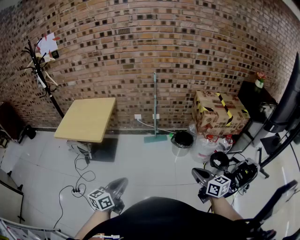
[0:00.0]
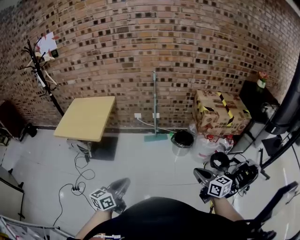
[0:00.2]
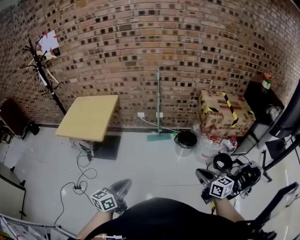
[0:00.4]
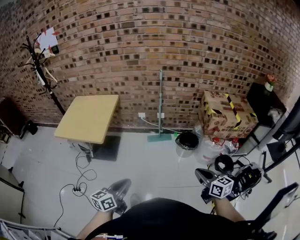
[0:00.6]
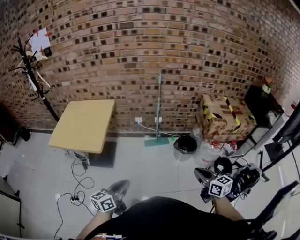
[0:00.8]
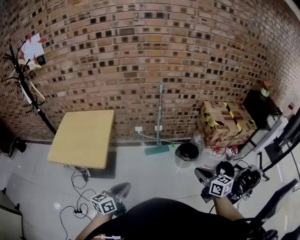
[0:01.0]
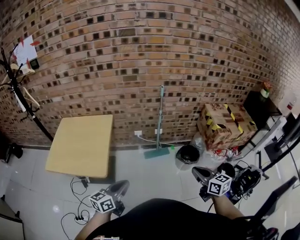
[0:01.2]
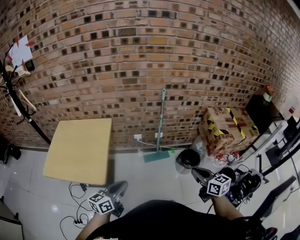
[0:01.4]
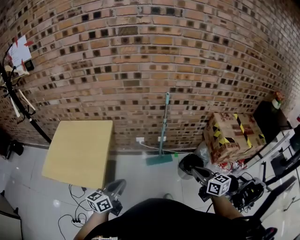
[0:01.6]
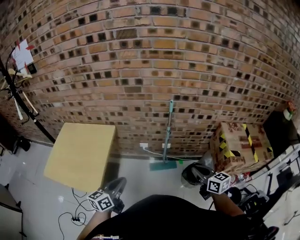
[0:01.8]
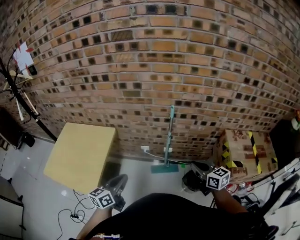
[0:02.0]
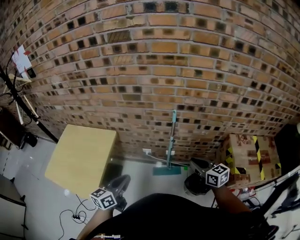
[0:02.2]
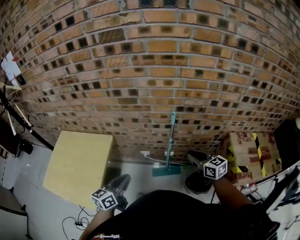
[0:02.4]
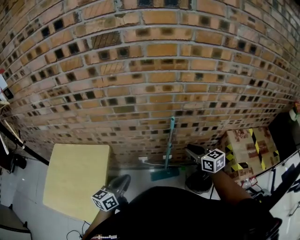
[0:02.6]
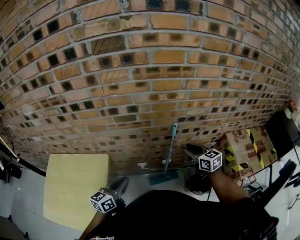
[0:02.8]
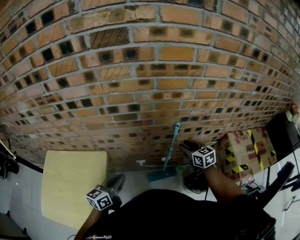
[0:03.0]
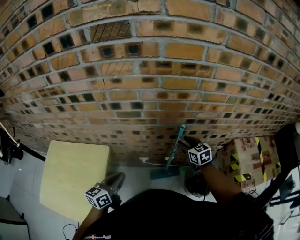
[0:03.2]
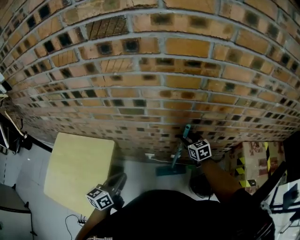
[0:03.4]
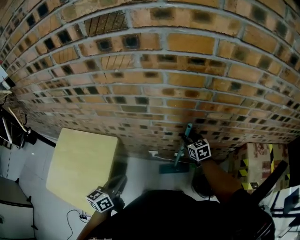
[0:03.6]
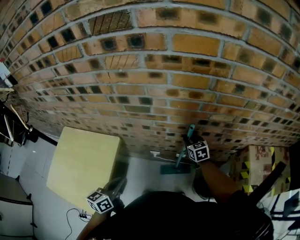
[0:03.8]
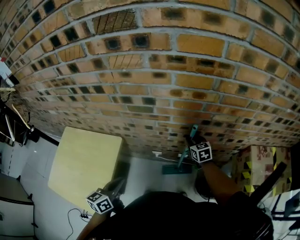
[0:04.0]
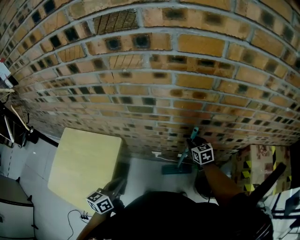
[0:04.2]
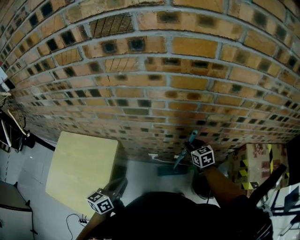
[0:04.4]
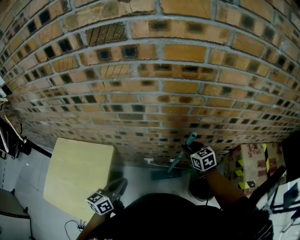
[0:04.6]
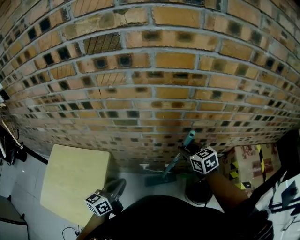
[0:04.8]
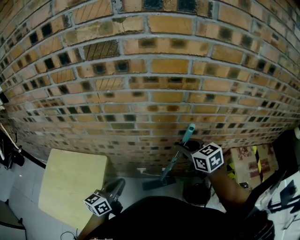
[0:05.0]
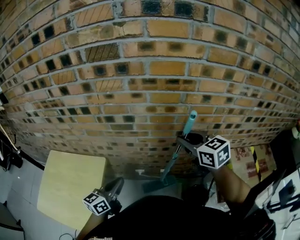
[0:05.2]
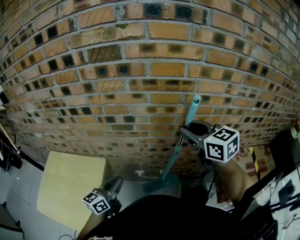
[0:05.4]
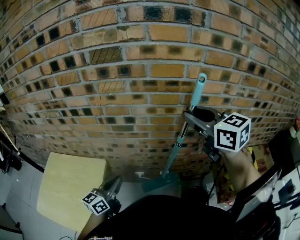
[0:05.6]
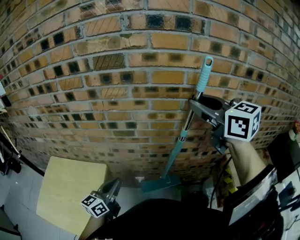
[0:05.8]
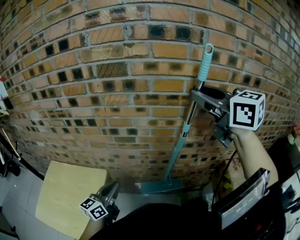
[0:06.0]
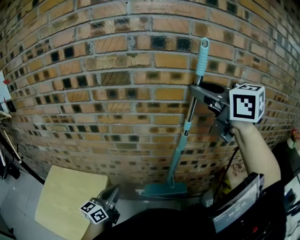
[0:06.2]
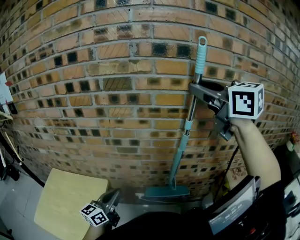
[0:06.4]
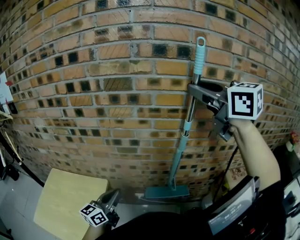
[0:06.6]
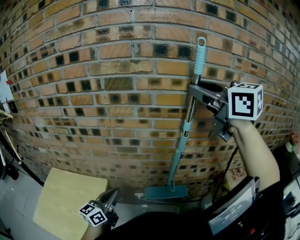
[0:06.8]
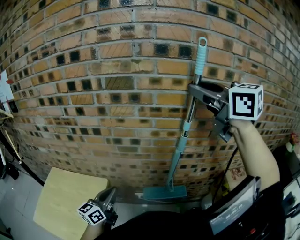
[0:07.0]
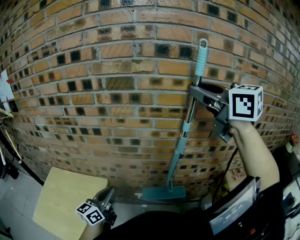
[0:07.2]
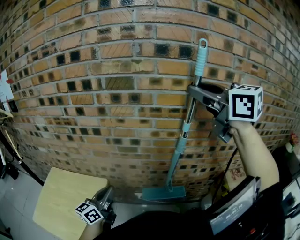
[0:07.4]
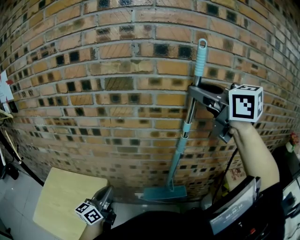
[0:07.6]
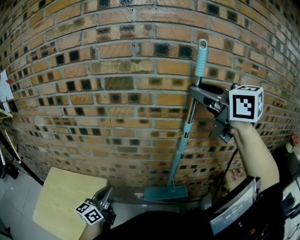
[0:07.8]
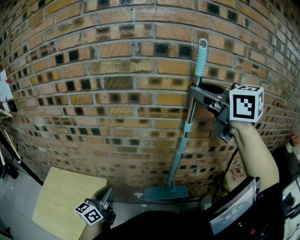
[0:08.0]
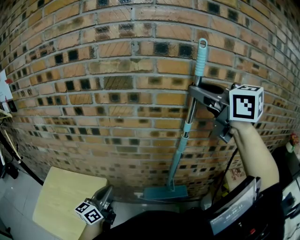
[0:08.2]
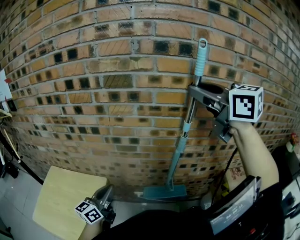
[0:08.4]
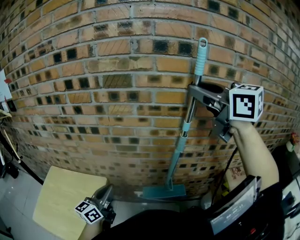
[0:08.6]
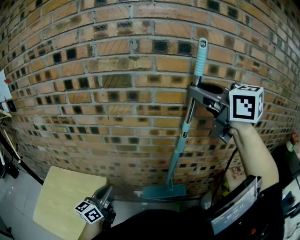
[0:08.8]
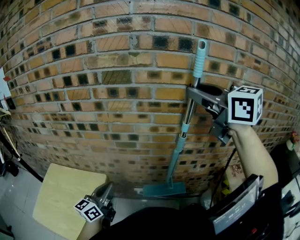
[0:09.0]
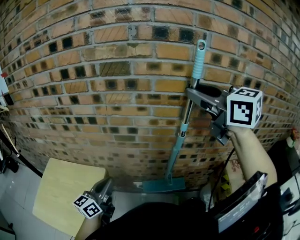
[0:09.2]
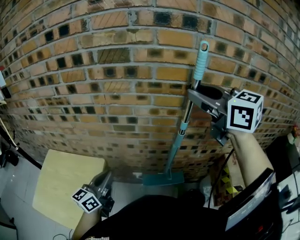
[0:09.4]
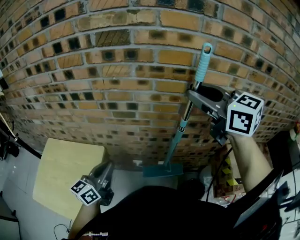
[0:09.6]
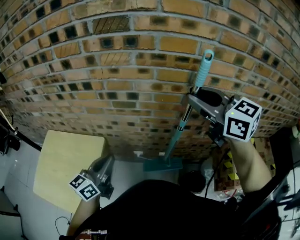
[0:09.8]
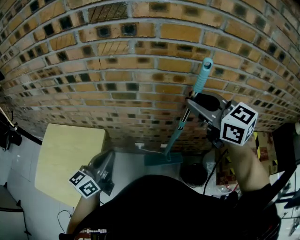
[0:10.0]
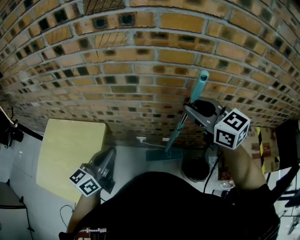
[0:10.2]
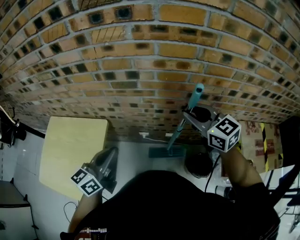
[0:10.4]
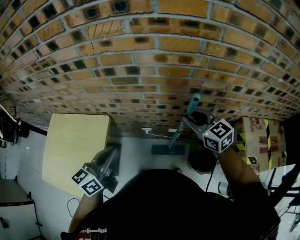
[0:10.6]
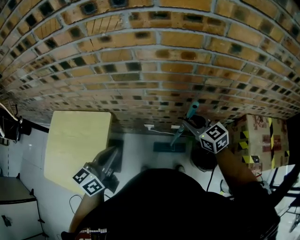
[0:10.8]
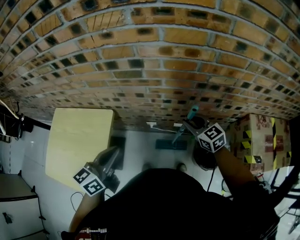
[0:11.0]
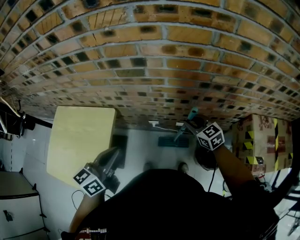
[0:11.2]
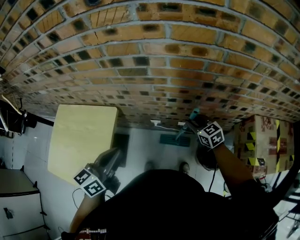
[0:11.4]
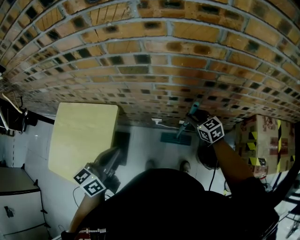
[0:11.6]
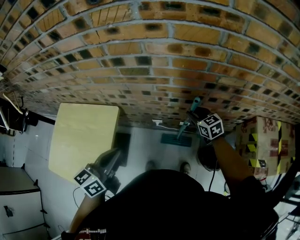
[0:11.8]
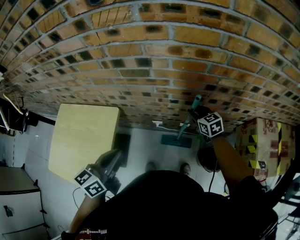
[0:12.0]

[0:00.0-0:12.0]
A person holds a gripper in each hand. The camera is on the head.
0.0 to 1.6 s: Both grippers are carried forward, approximately 40 cm.
1.6 to 3.0 s: Both grippers move forward, about 40 cm. The right gripper opens its fingers.
3.0 to 4.4 s: The right gripper travels downward and forward by about 10 cm.
4.4 to 6.0 s: The right gripper is displaced upward by about 50 cm, and turns by approximately 30 degrees. Meanwhile the left gripper goes approximately 10 cm upward.
6.0 to 7.6 s: The right gripper heads upward, covering roughly 5 cm.
7.6 to 9.0 s: The grippers make only small movements.
9.0 to 10.4 s: The right gripper moves downward, about 35 cm, while the left gripper changes place by some 5 cm.
10.4 to 12.0 s: The right gripper goes roughly 25 cm downward.

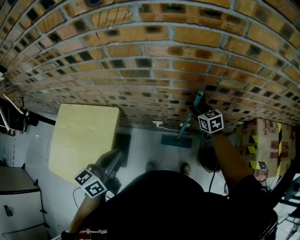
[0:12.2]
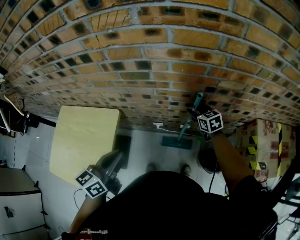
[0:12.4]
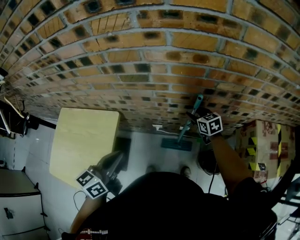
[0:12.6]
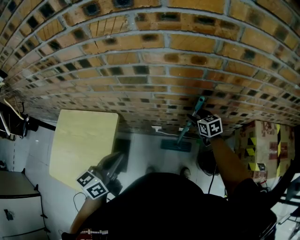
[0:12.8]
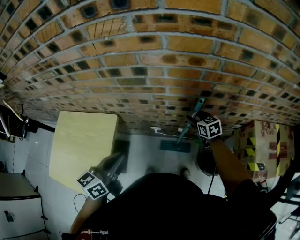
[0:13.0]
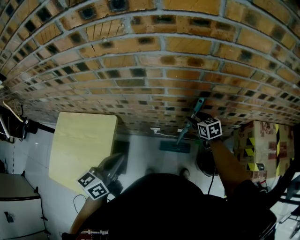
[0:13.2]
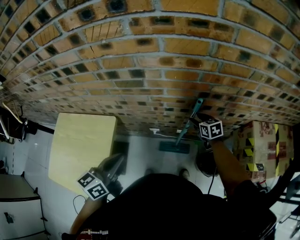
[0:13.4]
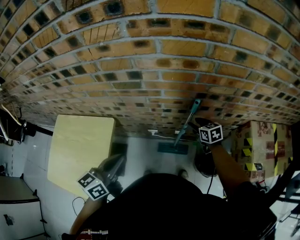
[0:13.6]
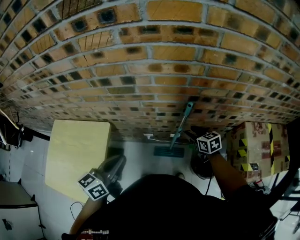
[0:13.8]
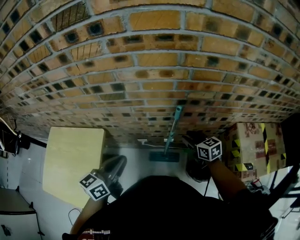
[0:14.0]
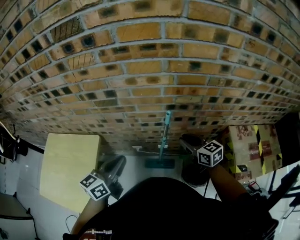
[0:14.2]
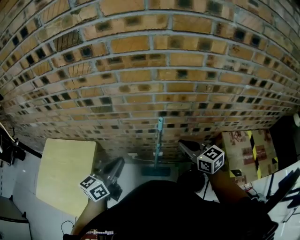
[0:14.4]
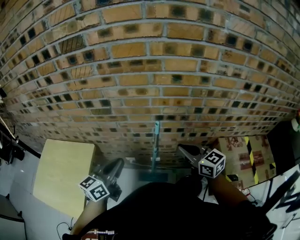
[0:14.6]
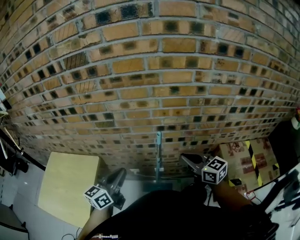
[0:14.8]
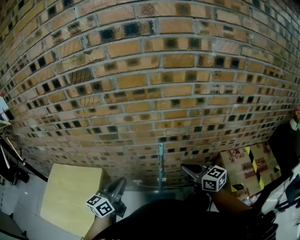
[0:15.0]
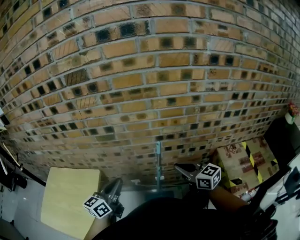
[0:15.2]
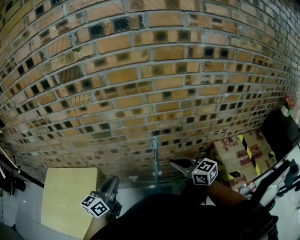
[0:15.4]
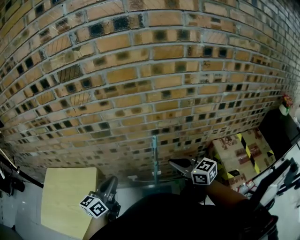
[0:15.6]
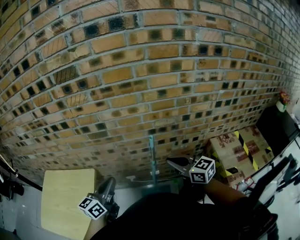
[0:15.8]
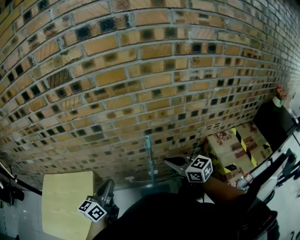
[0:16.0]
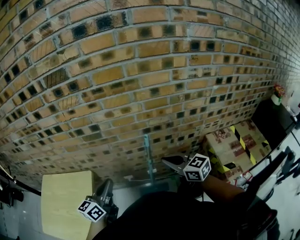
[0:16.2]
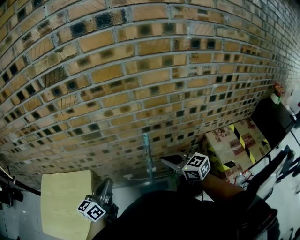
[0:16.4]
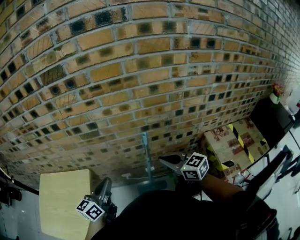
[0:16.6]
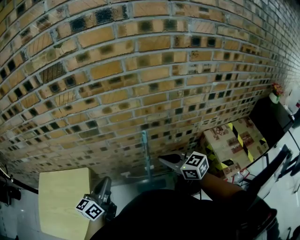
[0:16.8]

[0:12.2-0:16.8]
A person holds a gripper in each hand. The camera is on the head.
12.2 to 13.8 s: The right gripper travels backward by some 5 cm, and opens. The left gripper shifts by about 5 cm.
13.8 to 15.2 s: The right gripper shifts some 25 cm upward and backward, swivels some 30 degrees, and closes its fingers, while the left gripper is displaced to the right and upward by some 10 cm.
15.2 to 16.8 s: The grippers stay close to where they were, moving slightly.

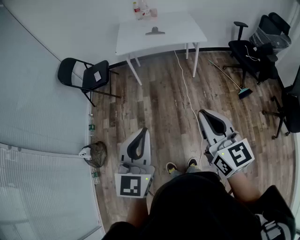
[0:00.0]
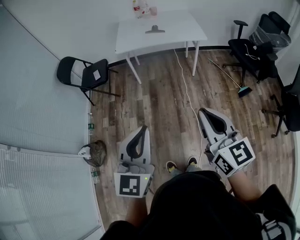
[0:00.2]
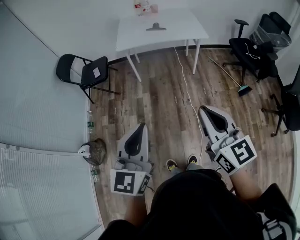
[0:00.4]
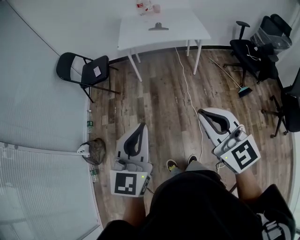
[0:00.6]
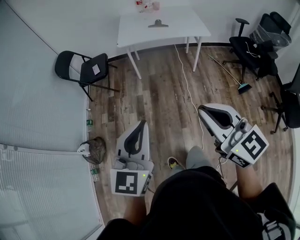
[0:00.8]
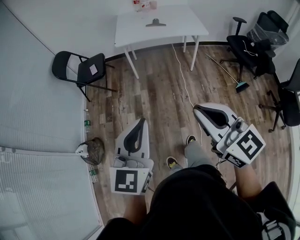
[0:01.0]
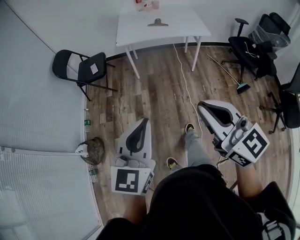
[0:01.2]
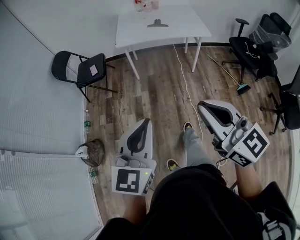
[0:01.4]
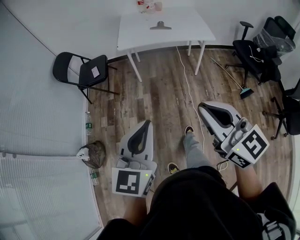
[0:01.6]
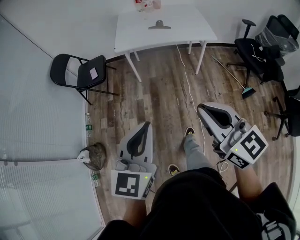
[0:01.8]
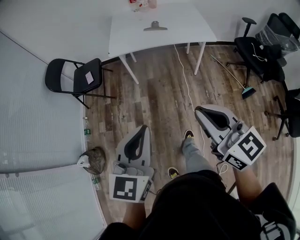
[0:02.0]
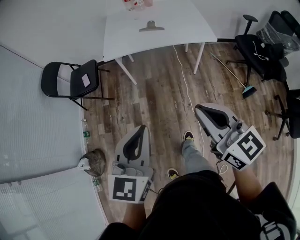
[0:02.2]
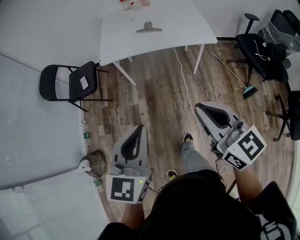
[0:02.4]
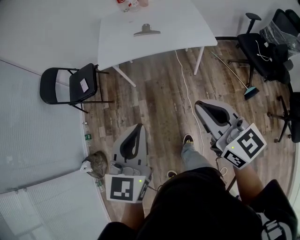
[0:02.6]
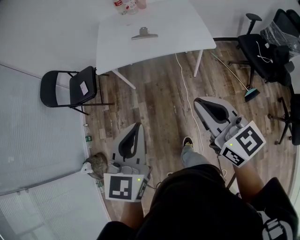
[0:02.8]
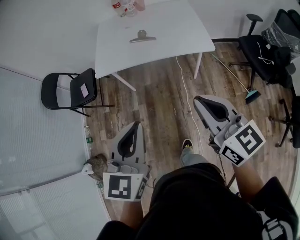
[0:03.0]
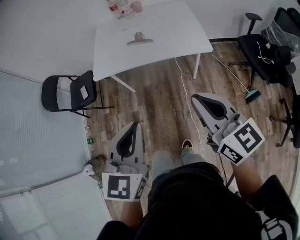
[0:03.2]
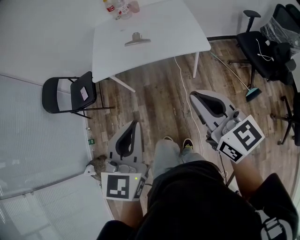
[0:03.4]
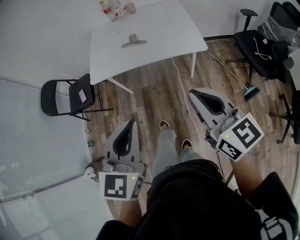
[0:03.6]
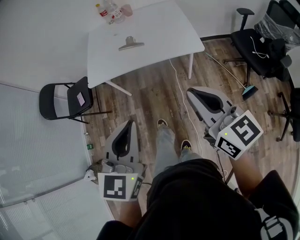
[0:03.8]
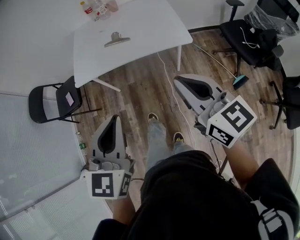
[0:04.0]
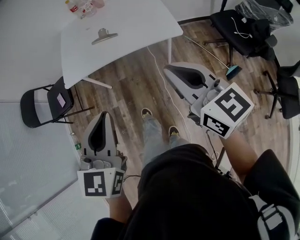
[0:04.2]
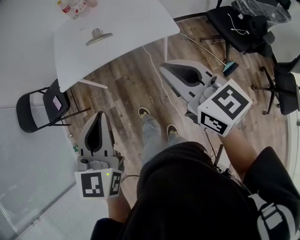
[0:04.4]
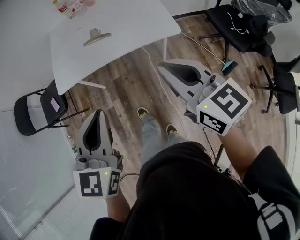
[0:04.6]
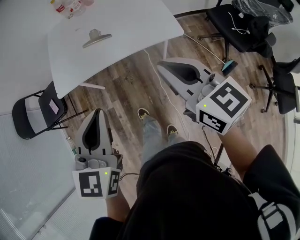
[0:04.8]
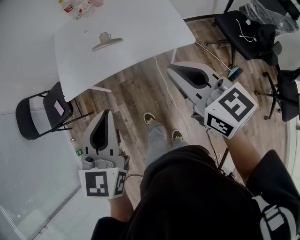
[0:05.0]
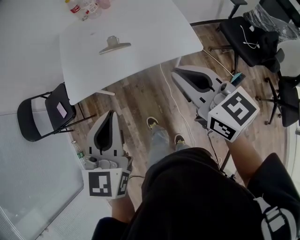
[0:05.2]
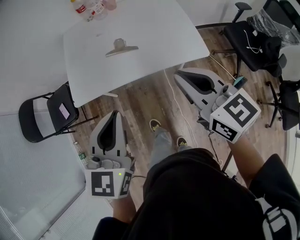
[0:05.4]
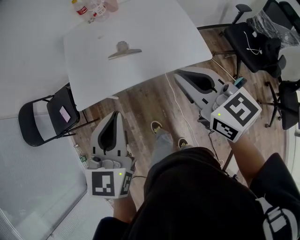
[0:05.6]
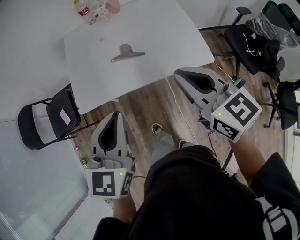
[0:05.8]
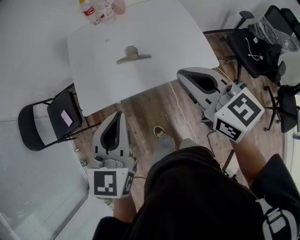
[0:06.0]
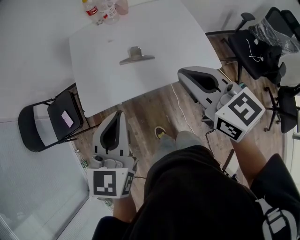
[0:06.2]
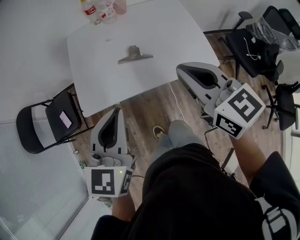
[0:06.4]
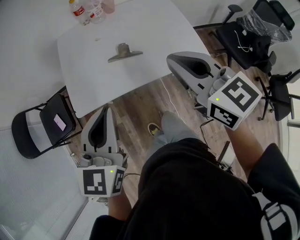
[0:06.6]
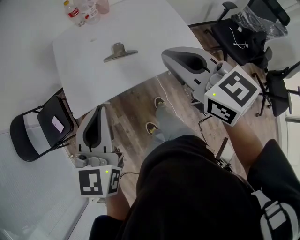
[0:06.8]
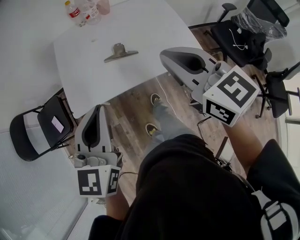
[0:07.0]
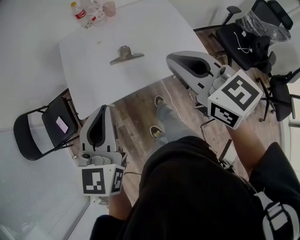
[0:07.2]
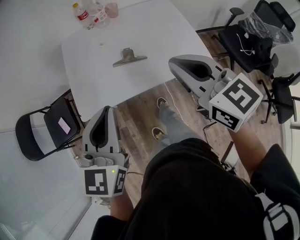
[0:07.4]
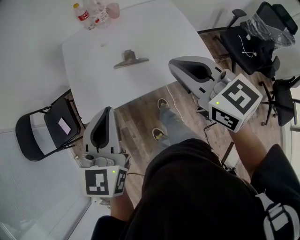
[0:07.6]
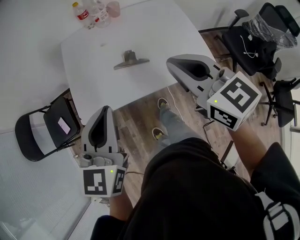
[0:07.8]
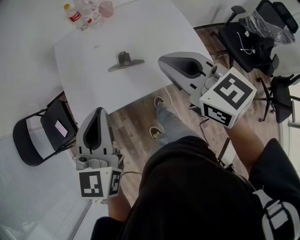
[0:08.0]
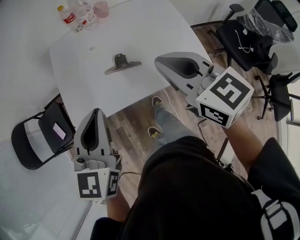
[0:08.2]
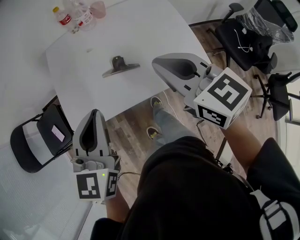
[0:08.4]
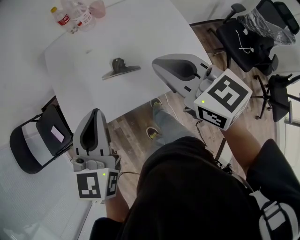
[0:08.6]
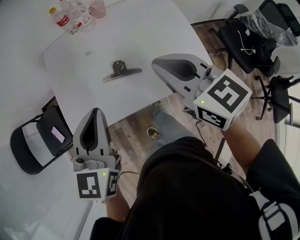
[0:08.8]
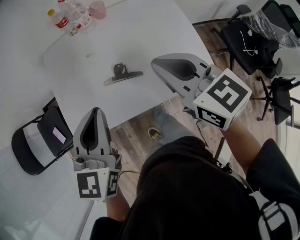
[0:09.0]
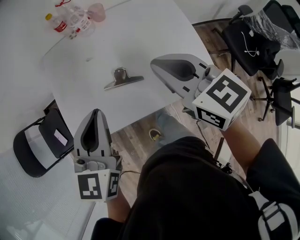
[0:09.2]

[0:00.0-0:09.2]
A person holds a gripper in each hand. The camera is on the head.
0.0 to 1.6 s: The right gripper heads forward and to the left, covering about 10 cm. Meanwhile the left gripper is displaced forward by approximately 10 cm.
1.6 to 3.0 s: The grippers both shift forward and to the right by some 35 cm.
3.0 to 4.6 s: The right gripper heads forward and to the right, covering some 15 cm, while the left gripper is displaced forward by some 10 cm.
4.6 to 6.2 s: Both grippers move forward and to the left, some 25 cm.
6.2 to 7.6 s: The grippers move only a little.
7.6 to 9.2 s: The two grippers go about 15 cm forward.
